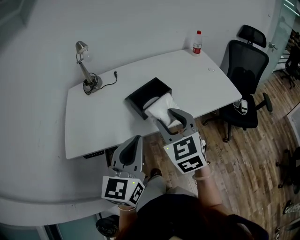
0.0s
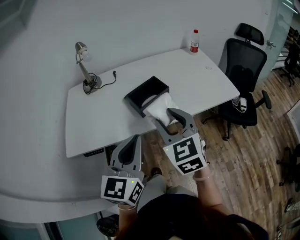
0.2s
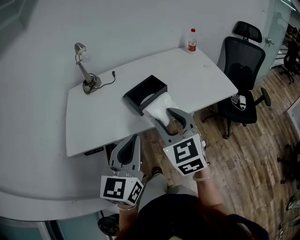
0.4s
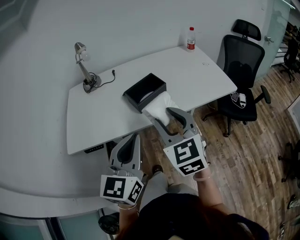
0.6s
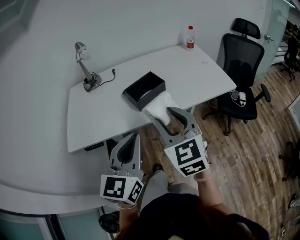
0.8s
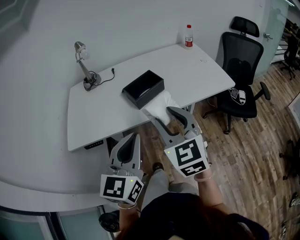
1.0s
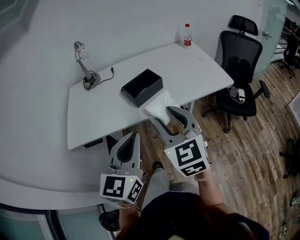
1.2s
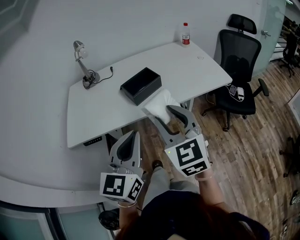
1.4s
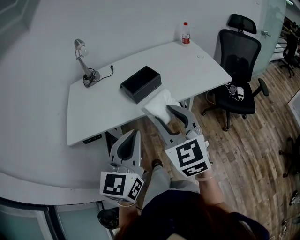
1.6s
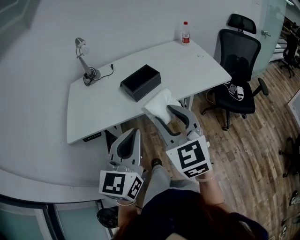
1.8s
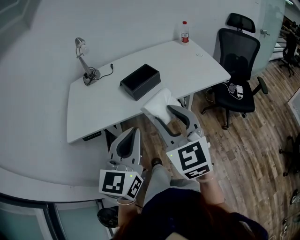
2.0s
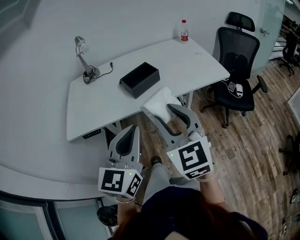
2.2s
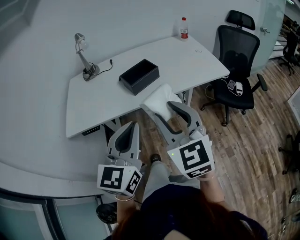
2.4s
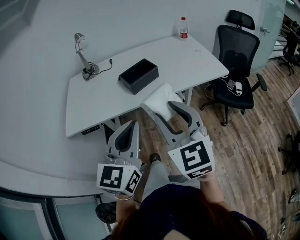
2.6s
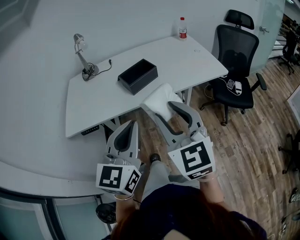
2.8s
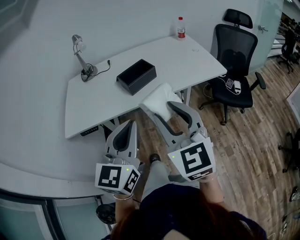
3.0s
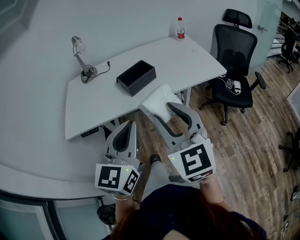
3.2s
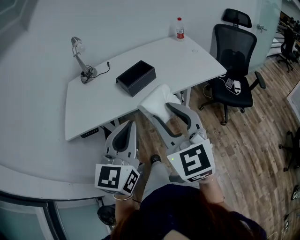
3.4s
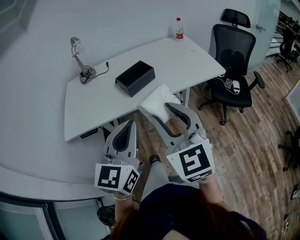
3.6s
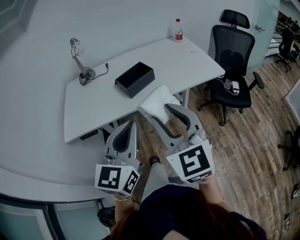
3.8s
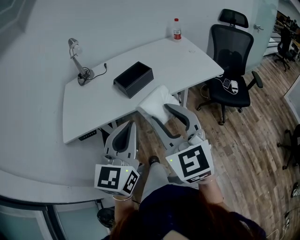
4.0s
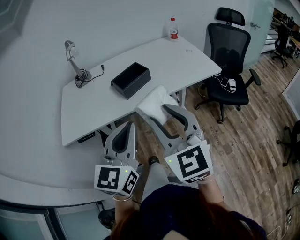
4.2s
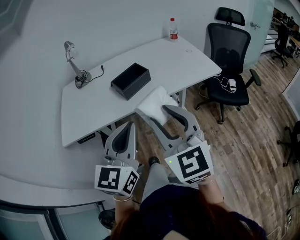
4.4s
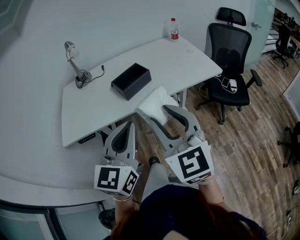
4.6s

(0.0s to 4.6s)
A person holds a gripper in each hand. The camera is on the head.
0.0s - 1.6s: The grippers both shift backward by roughly 10 cm.
1.6s - 3.0s: The right gripper is displaced backward by roughly 5 cm.
3.0s - 4.6s: The grippers stay close to where they were, moving slightly.

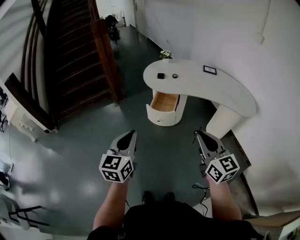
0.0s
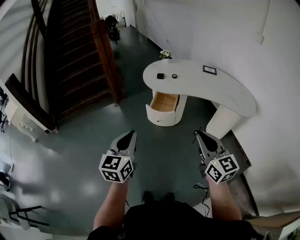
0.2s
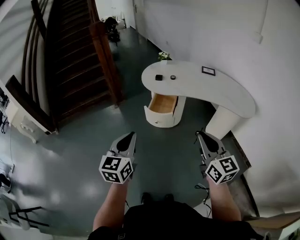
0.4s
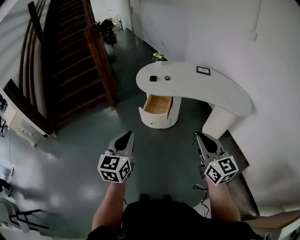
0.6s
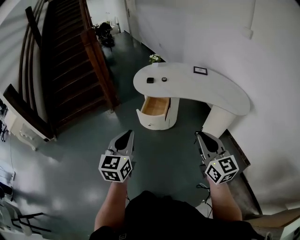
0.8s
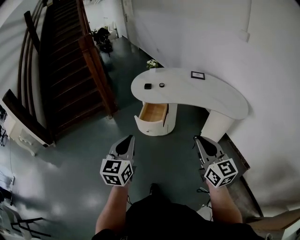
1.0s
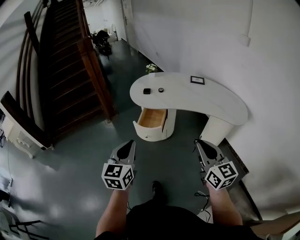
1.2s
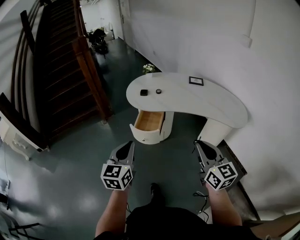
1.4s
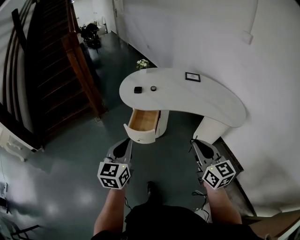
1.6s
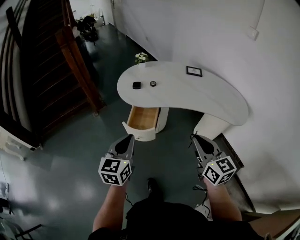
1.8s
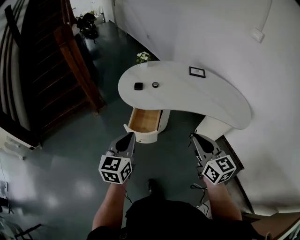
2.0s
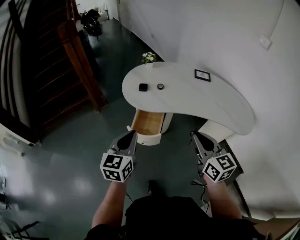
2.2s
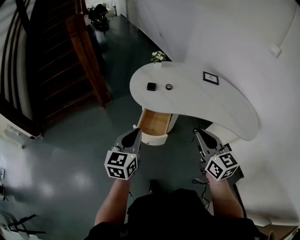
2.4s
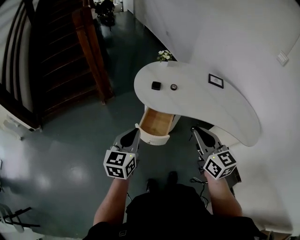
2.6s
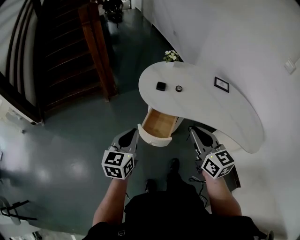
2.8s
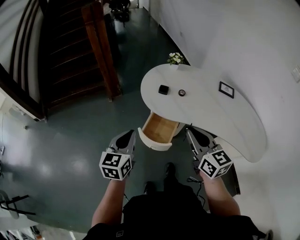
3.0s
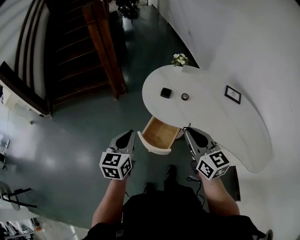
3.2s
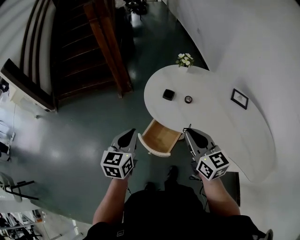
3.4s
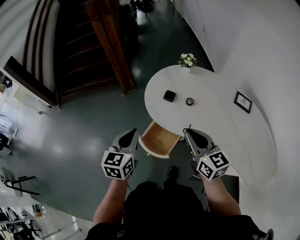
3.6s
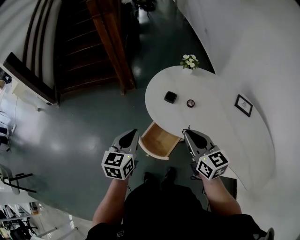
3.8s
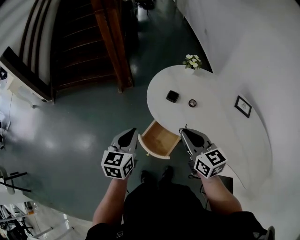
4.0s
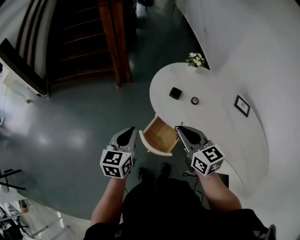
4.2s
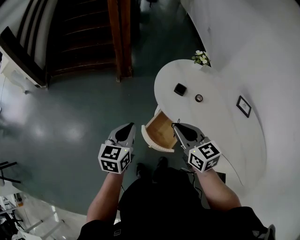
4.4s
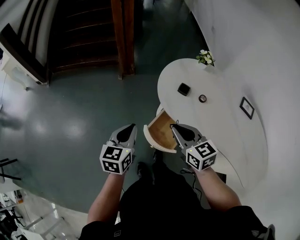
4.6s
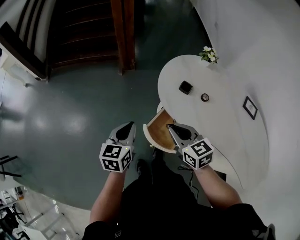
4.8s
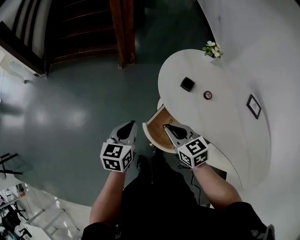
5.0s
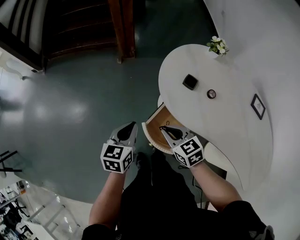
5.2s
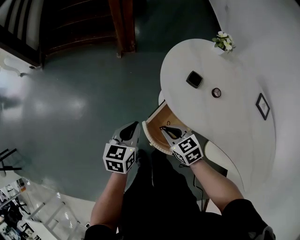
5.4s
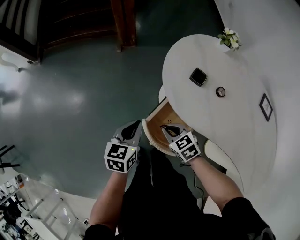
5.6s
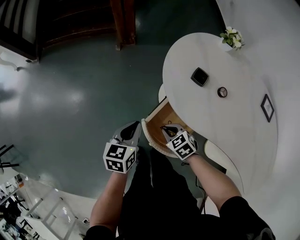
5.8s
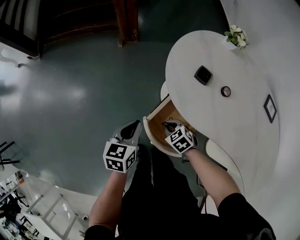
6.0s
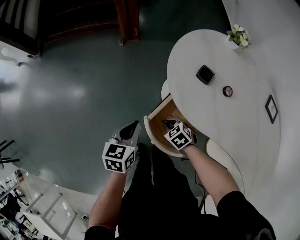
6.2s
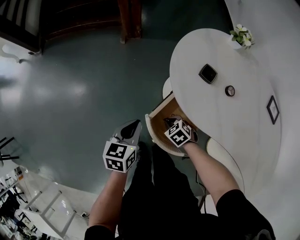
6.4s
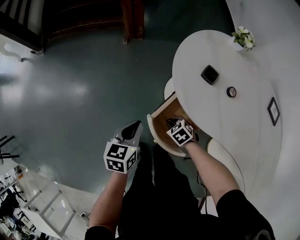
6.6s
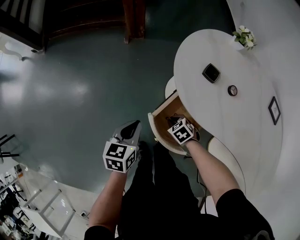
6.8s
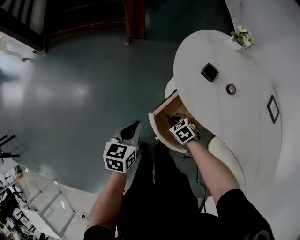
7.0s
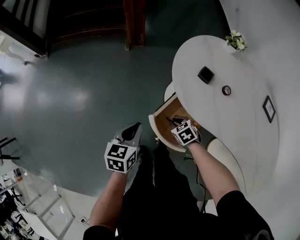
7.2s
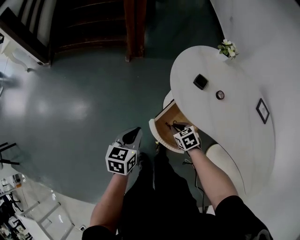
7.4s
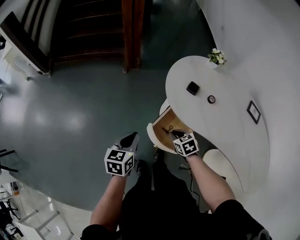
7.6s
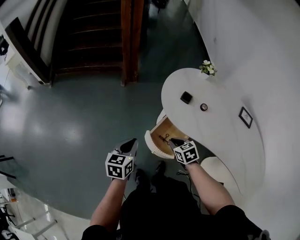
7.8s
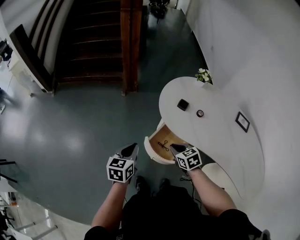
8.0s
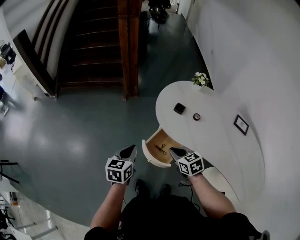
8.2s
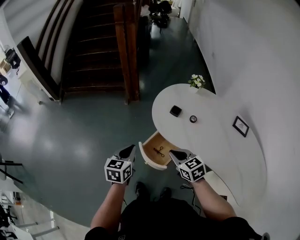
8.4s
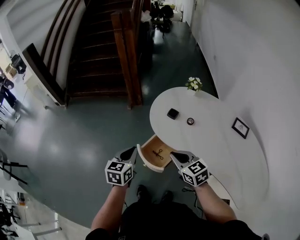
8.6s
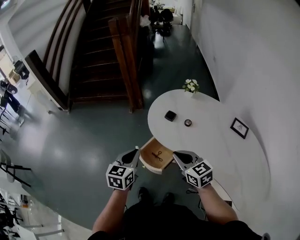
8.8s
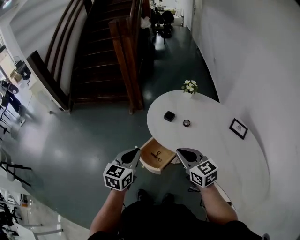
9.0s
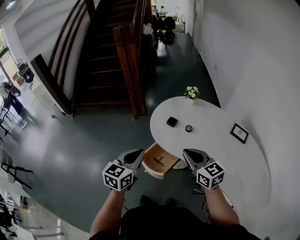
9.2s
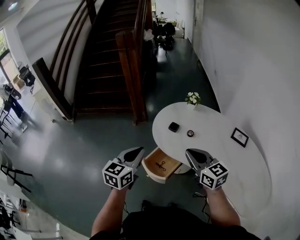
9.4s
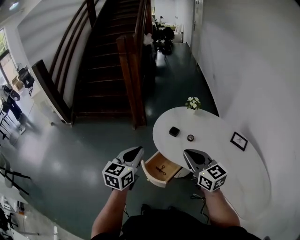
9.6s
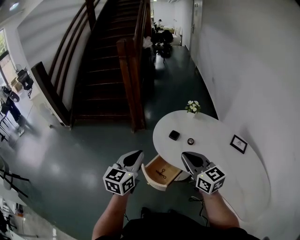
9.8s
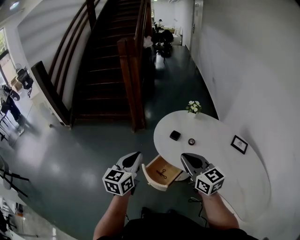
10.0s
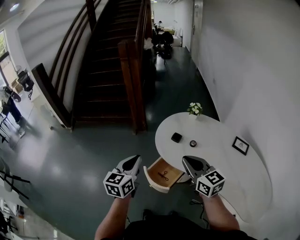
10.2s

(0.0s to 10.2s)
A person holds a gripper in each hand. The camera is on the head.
0.0s - 1.4s: Both grippers travel together to the right and forward, some 10 cm.
1.4s - 3.0s: Both grippers move forward, approximately 25 cm.
3.0s - 4.4s: The left gripper travels forward and downward by about 10 cm, and travels to the right and back again, roughly 5 cm each way; the right gripper heads forward, downward and to the left, covering roughly 15 cm, and rotates some 20 degrees.
4.4s - 5.8s: The left gripper travels downward by roughly 20 cm. The right gripper goes some 30 cm downward, and angles its fingers downward, by roughly 30 degrees.
5.8s - 7.2s: The left gripper moves about 5 cm.
7.2s - 8.8s: The left gripper goes about 20 cm upward and to the right; the right gripper travels upward by some 35 cm, and tilts its fingers some 40 degrees upward.
8.8s - 10.2s: Both grippers move upward, some 10 cm.

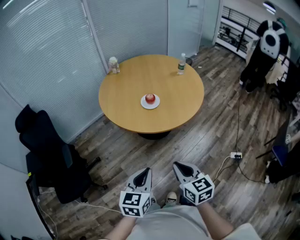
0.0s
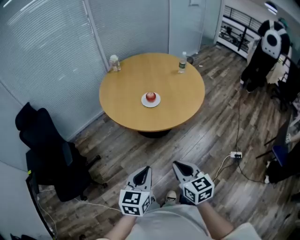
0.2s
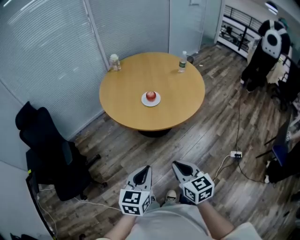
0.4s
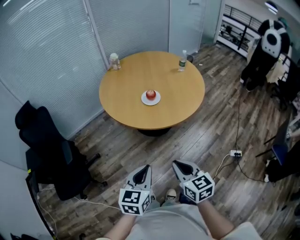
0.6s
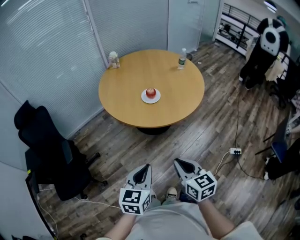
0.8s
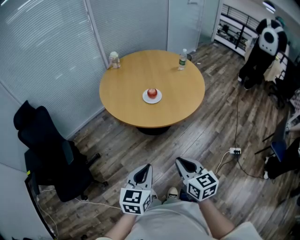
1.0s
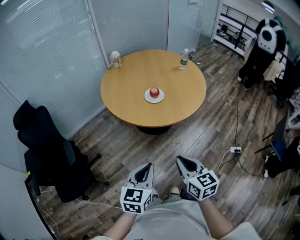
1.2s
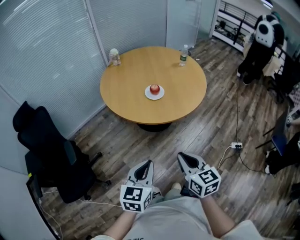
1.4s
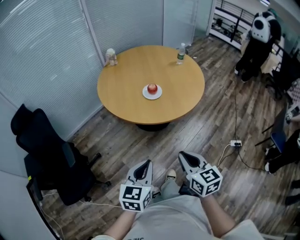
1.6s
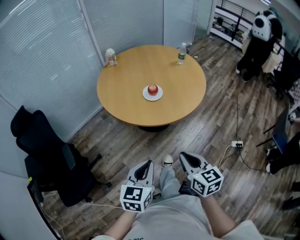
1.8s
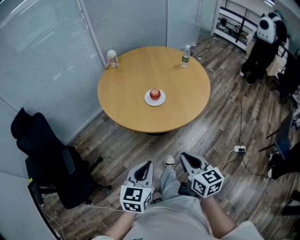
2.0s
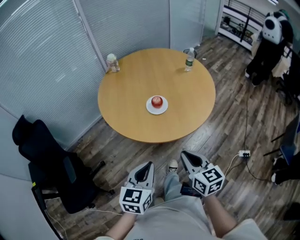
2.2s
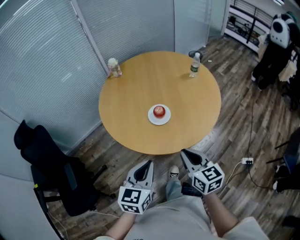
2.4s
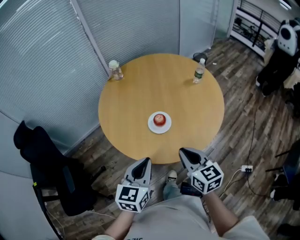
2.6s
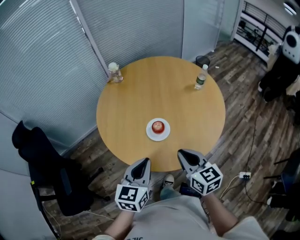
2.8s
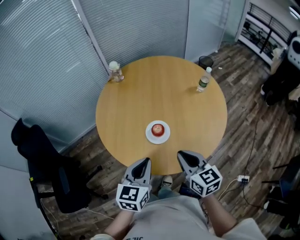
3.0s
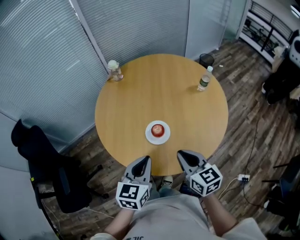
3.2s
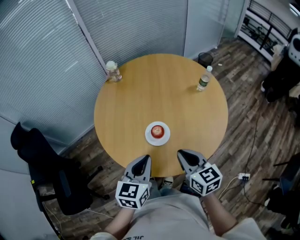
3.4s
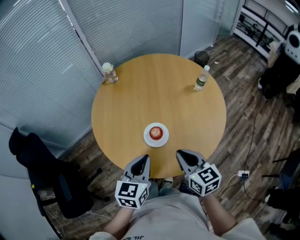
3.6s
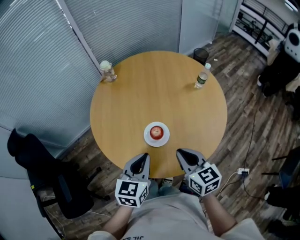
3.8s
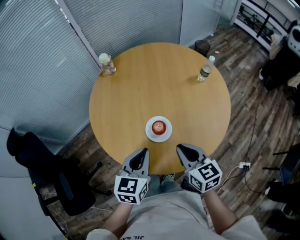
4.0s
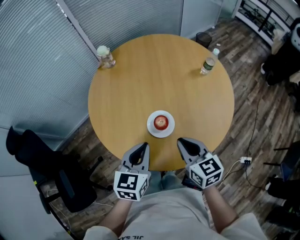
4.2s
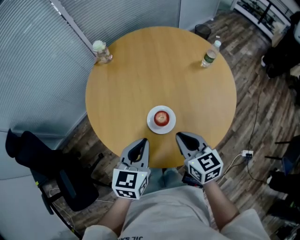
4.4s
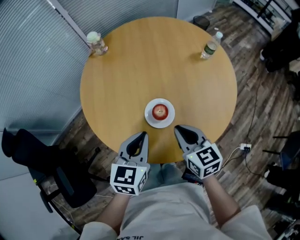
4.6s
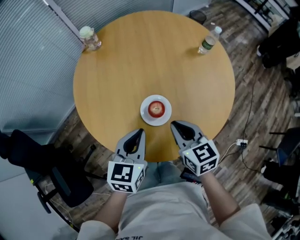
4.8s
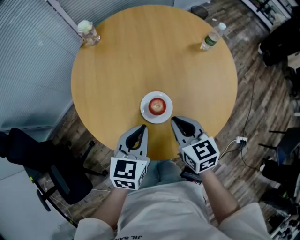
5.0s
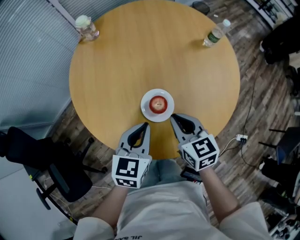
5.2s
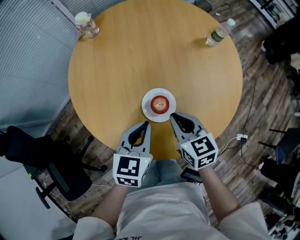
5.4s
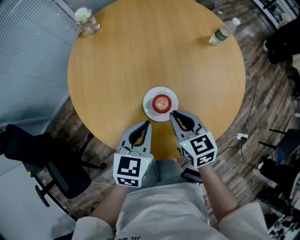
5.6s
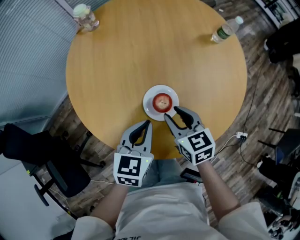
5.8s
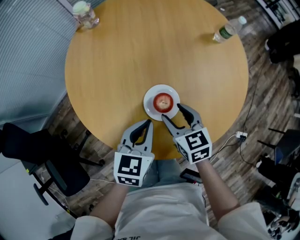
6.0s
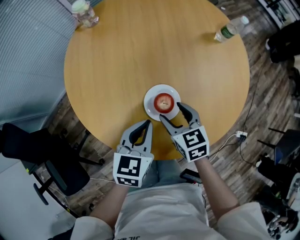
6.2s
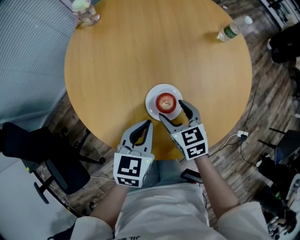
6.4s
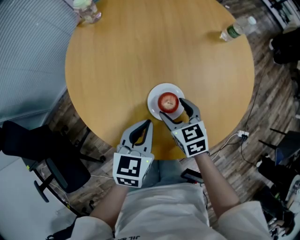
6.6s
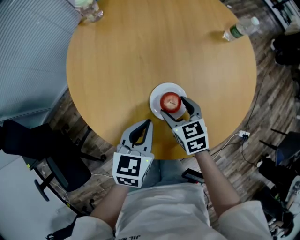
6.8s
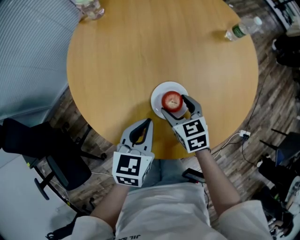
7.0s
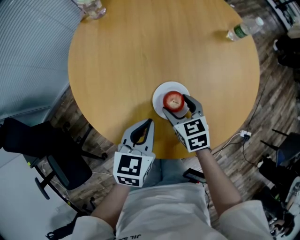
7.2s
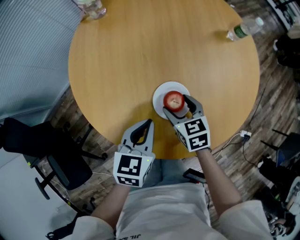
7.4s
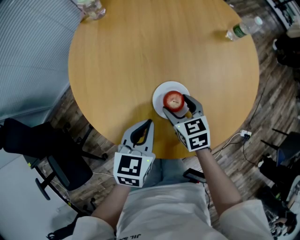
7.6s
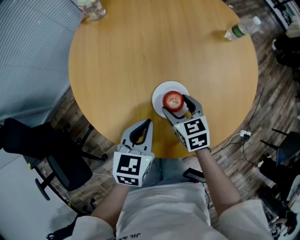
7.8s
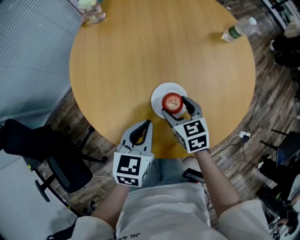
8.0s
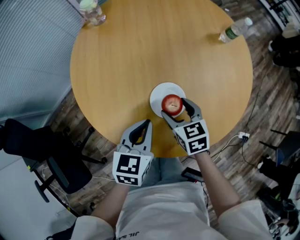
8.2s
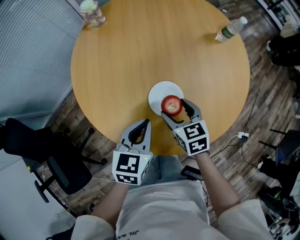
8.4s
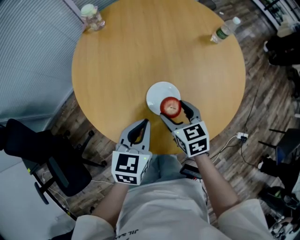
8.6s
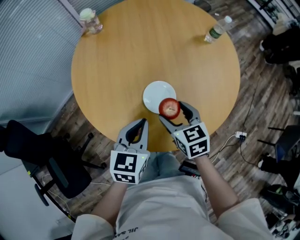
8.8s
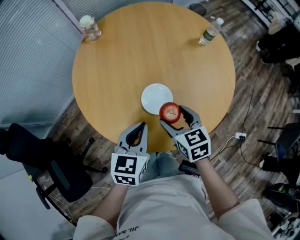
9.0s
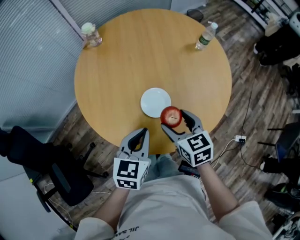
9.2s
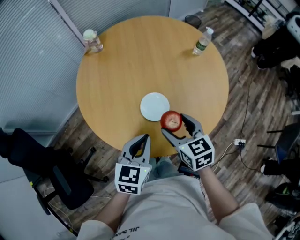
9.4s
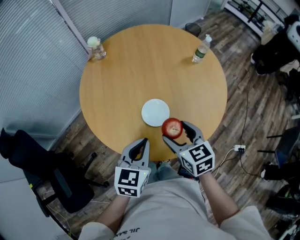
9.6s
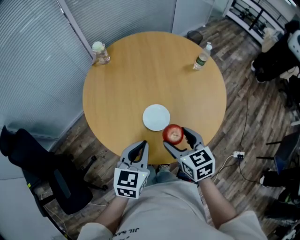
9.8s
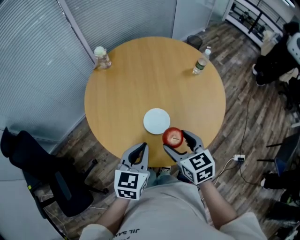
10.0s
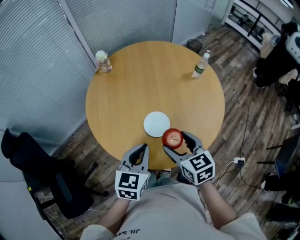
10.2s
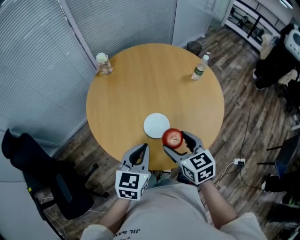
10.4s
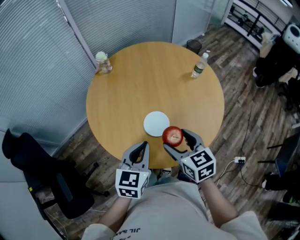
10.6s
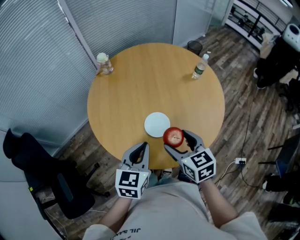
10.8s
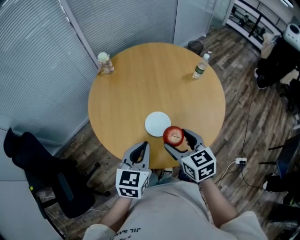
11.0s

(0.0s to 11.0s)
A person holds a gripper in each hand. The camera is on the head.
0.0s - 1.6s: The left gripper is displaced to the left by roughly 5 cm.
1.6s - 3.2s: The grippers both shift forward by about 35 cm.
3.2s - 4.8s: Both grippers move forward and downward, approximately 10 cm.
4.8s - 6.2s: Both grippers travel together downward, about 10 cm. The right gripper opens its fingers.
6.2s - 7.8s: There are only small adjustments of the grippers.
7.8s - 9.4s: The grippers both shift upward and backward by roughly 15 cm.
9.4s - 11.0s: The two grippers go approximately 5 cm upward.
